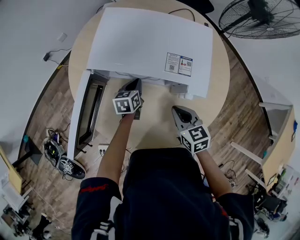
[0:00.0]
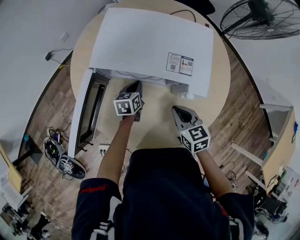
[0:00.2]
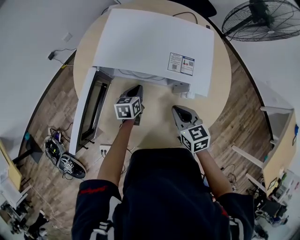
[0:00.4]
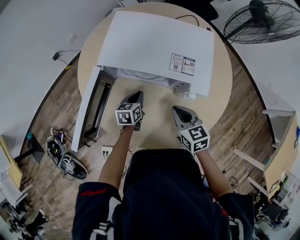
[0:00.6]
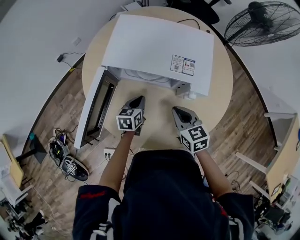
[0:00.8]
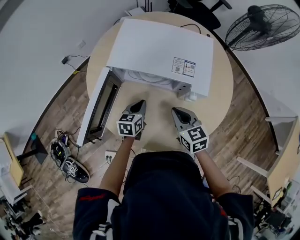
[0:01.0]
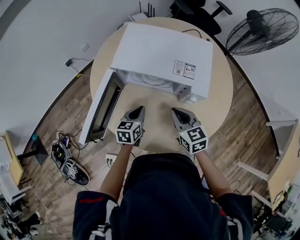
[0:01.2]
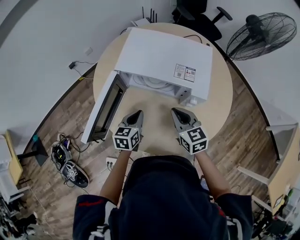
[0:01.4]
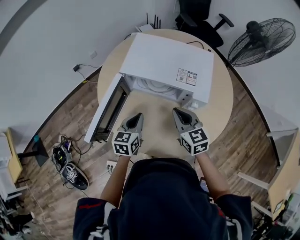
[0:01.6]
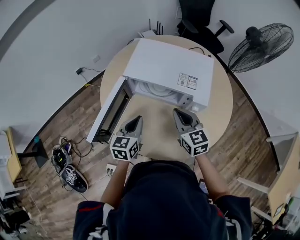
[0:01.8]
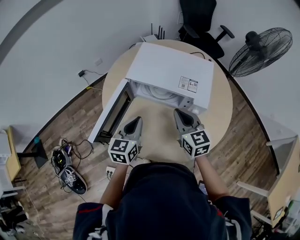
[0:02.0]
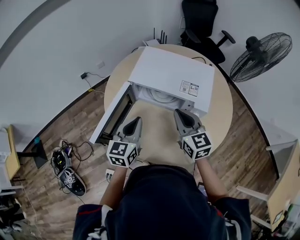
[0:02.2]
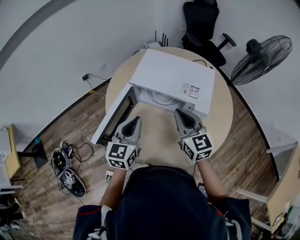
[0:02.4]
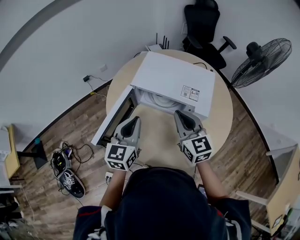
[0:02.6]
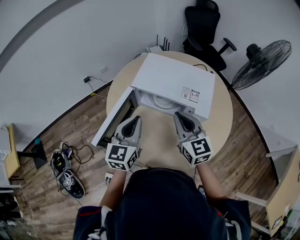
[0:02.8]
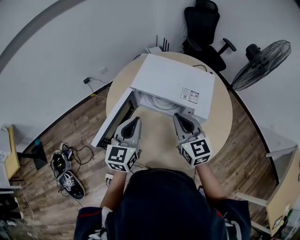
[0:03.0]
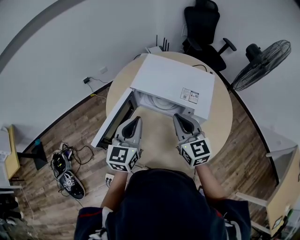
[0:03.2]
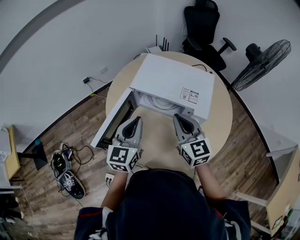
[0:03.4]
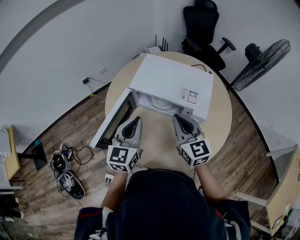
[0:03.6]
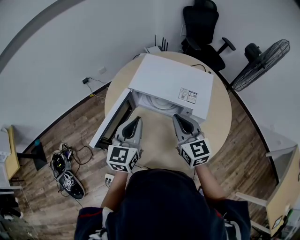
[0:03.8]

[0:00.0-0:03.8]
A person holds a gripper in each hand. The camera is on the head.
0:00.0 to 0:01.2: The right gripper shifts roughly 5 cm upward. Meanwhile the left gripper shifts approximately 15 cm backward and upward.
0:01.2 to 0:02.6: Both grippers move upward, about 20 cm. The left gripper swivels some 30 degrees, while the right gripper swivels roughly 20 degrees.
0:02.6 to 0:03.8: The grippers stay close to where they were, moving slightly.

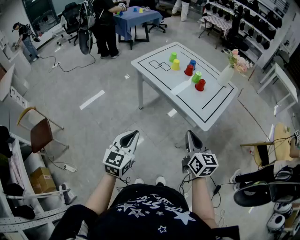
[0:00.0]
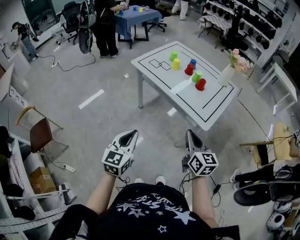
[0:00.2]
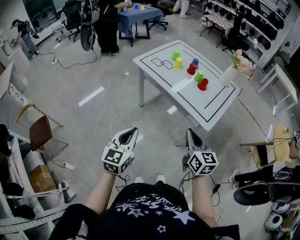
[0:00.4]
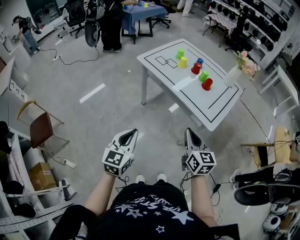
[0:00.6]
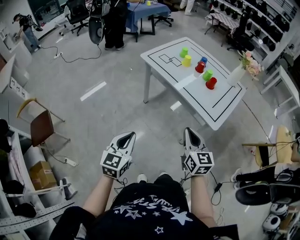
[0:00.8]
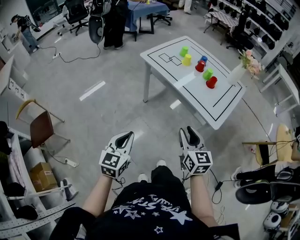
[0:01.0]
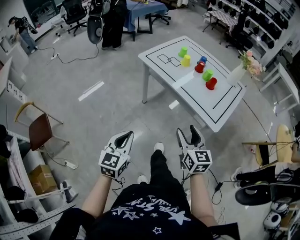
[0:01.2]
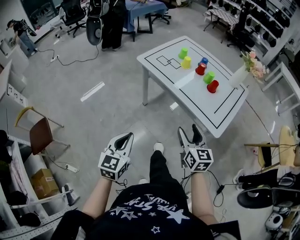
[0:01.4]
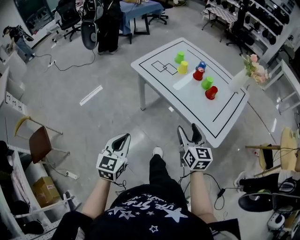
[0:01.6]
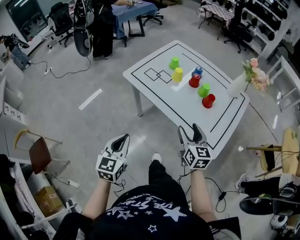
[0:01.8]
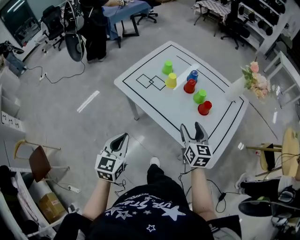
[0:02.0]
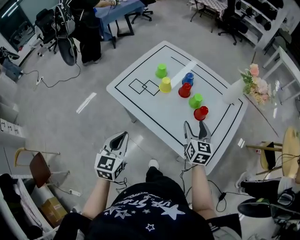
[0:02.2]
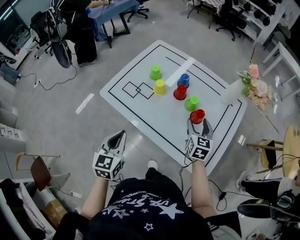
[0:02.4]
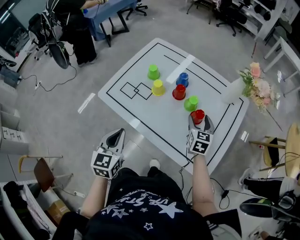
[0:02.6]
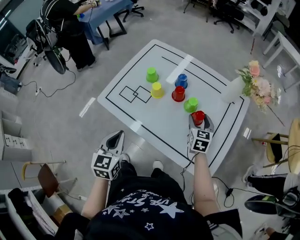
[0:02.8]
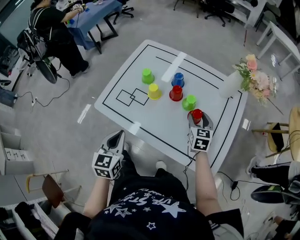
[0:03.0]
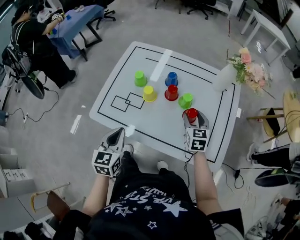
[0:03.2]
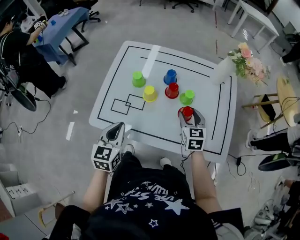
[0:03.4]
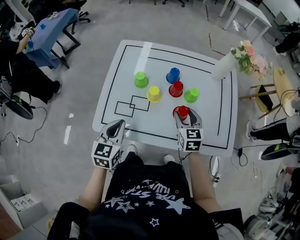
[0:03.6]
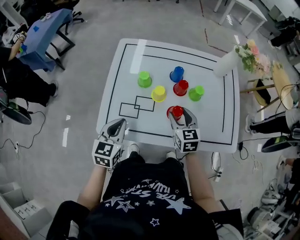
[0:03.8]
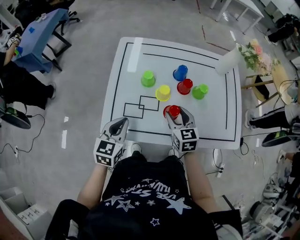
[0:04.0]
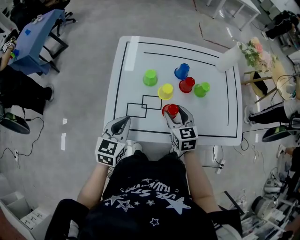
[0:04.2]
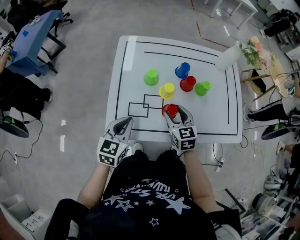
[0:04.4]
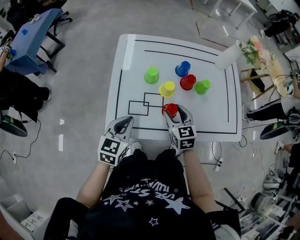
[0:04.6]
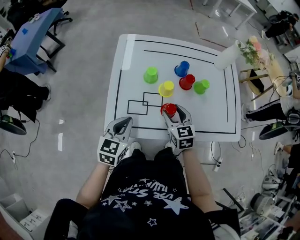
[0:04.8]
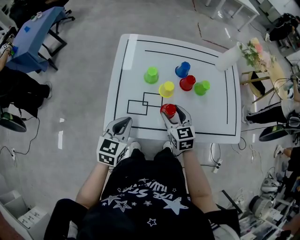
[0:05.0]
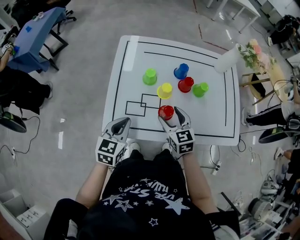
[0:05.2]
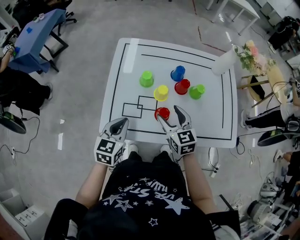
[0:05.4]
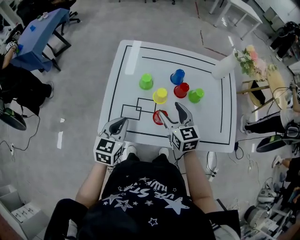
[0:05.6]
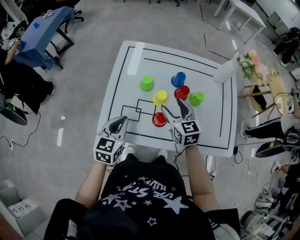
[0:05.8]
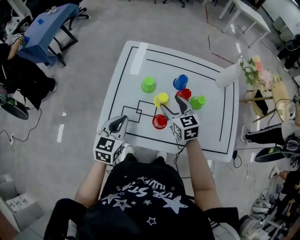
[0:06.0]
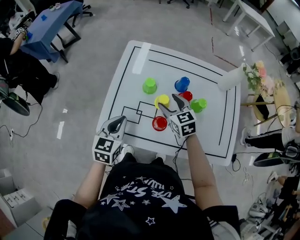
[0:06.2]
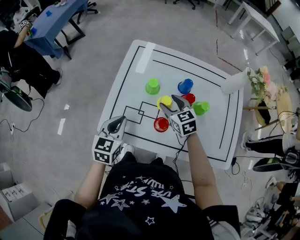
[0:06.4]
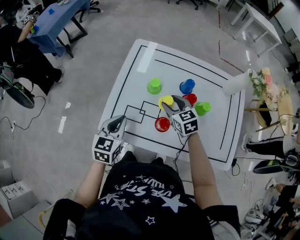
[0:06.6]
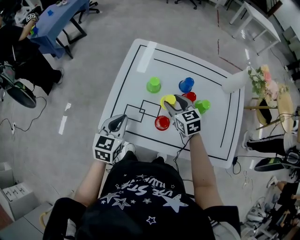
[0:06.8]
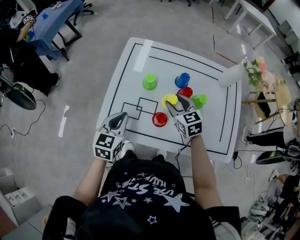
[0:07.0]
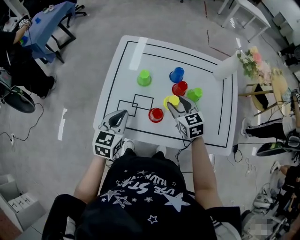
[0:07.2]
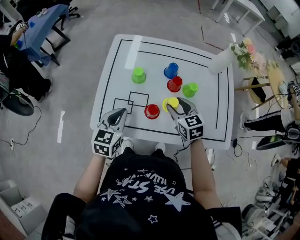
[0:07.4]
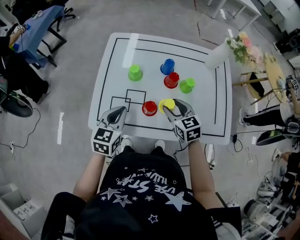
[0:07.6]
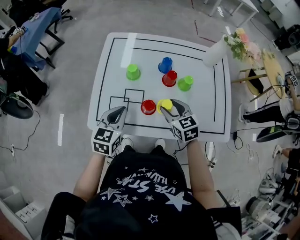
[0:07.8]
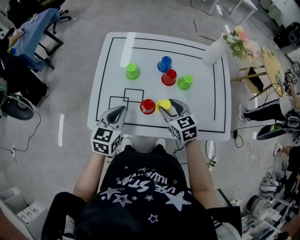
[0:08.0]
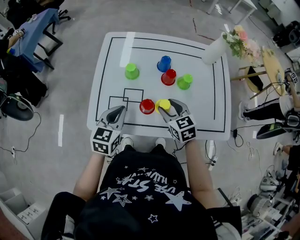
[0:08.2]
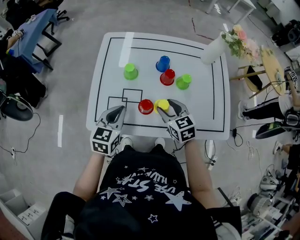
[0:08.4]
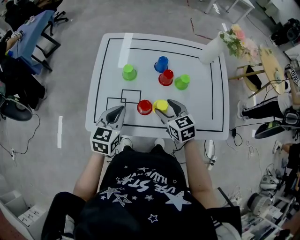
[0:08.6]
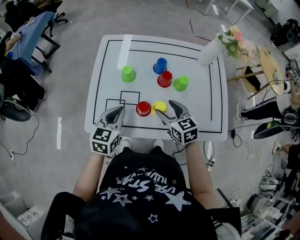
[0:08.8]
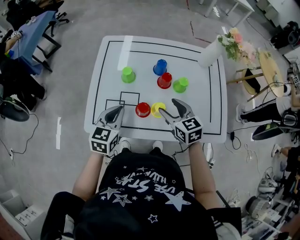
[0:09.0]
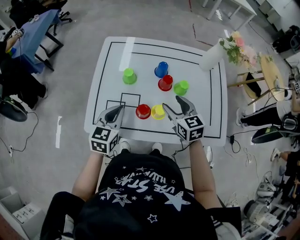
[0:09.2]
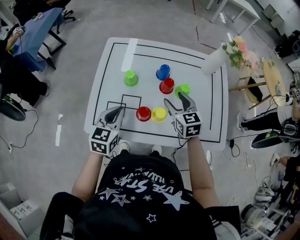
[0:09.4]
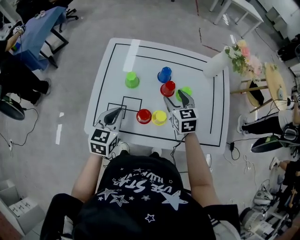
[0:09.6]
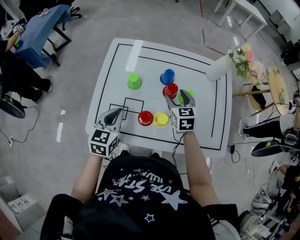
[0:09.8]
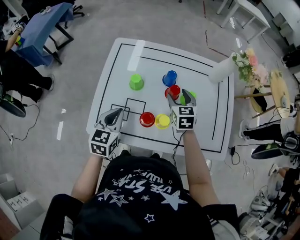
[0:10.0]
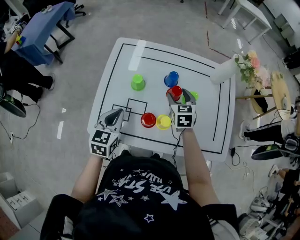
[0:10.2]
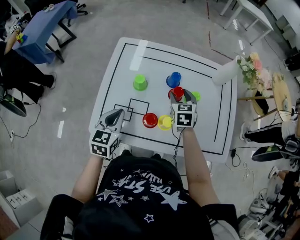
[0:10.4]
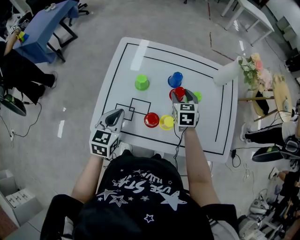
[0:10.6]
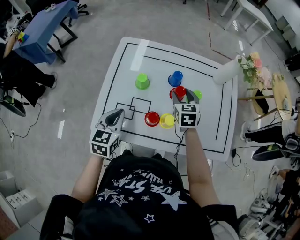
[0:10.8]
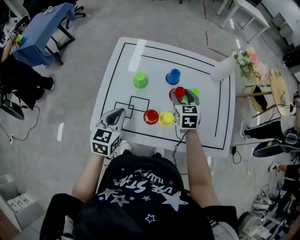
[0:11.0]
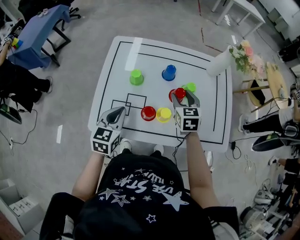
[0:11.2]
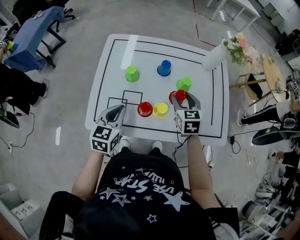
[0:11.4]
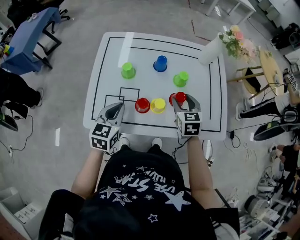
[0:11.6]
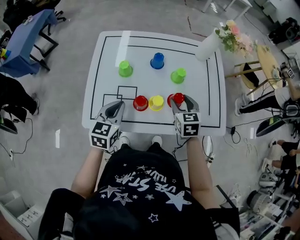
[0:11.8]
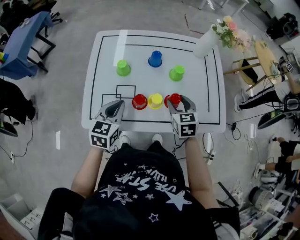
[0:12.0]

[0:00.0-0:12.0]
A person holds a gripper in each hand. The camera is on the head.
0:00.0 to 0:01.6: The right gripper is displaced forward by about 15 cm, and opens; the left gripper heads forward and to the left, covering some 15 cm.
0:01.6 to 0:03.0: The left gripper moves forward, about 35 cm; the right gripper is displaced forward and to the right by approximately 35 cm, and turns by approximately 30 degrees.
0:03.0 to 0:04.4: The left gripper is displaced to the left and forward by about 20 cm, and swivels roughly 40 degrees. The right gripper shifts roughly 25 cm to the left.
0:04.4 to 0:06.0: The right gripper is displaced forward by approximately 10 cm.
0:06.0 to 0:07.6: The right gripper travels backward and to the right by approximately 10 cm.
0:07.6 to 0:09.0: The grippers move only a little.
0:09.0 to 0:10.4: The right gripper moves forward, approximately 15 cm, and rotates roughly 20 degrees.
0:10.4 to 0:12.0: The right gripper shifts about 15 cm backward and to the right. Meanwhile the left gripper is displaced to the right by about 5 cm.

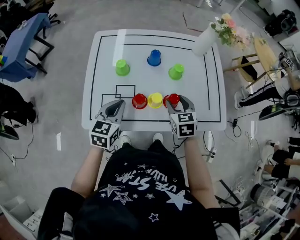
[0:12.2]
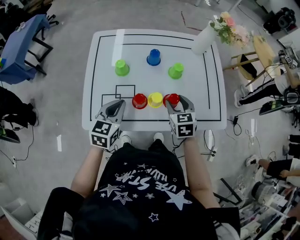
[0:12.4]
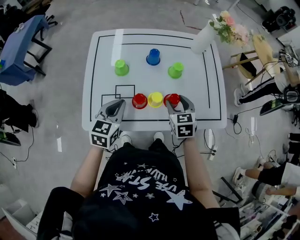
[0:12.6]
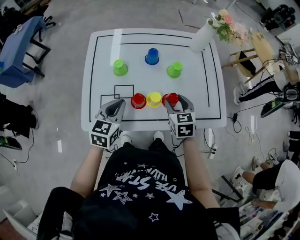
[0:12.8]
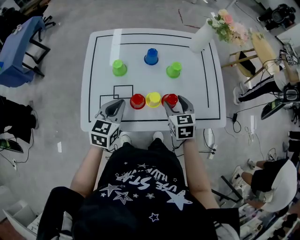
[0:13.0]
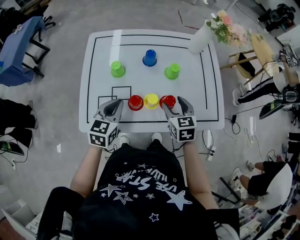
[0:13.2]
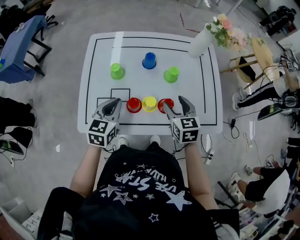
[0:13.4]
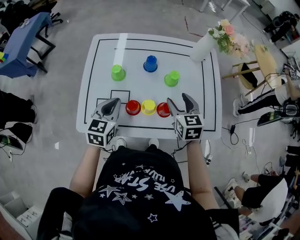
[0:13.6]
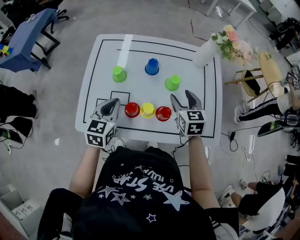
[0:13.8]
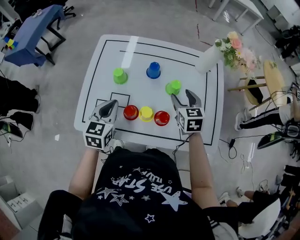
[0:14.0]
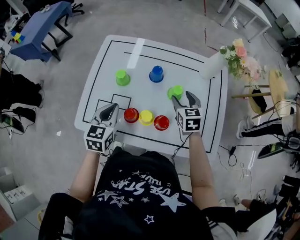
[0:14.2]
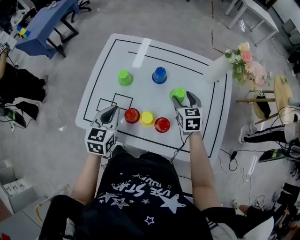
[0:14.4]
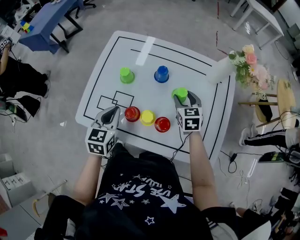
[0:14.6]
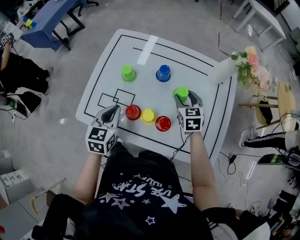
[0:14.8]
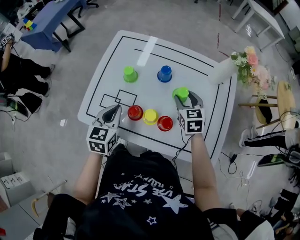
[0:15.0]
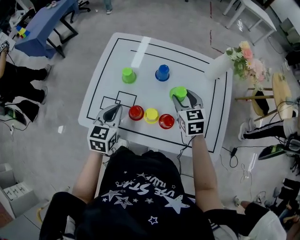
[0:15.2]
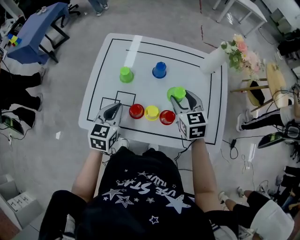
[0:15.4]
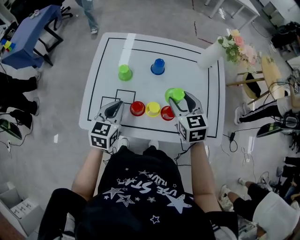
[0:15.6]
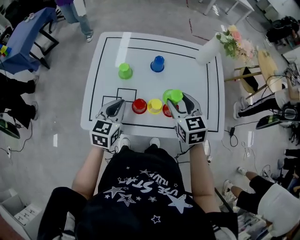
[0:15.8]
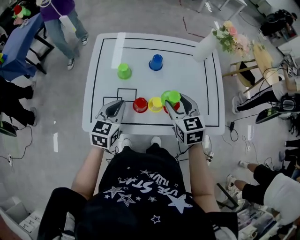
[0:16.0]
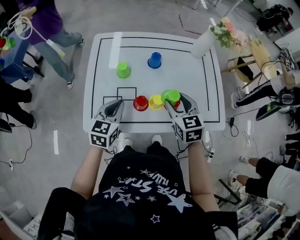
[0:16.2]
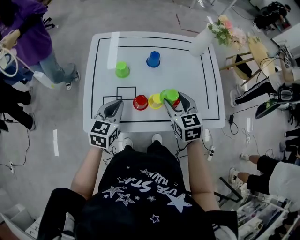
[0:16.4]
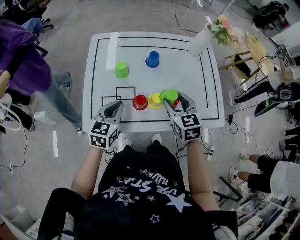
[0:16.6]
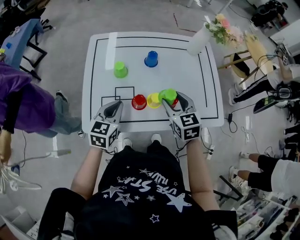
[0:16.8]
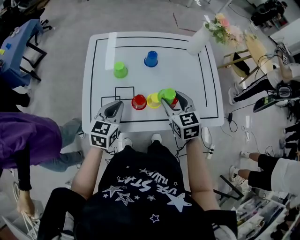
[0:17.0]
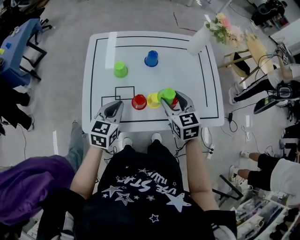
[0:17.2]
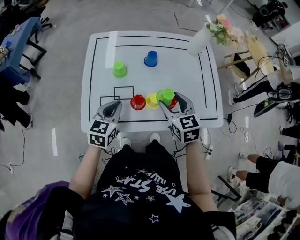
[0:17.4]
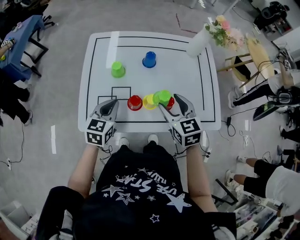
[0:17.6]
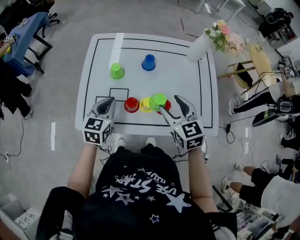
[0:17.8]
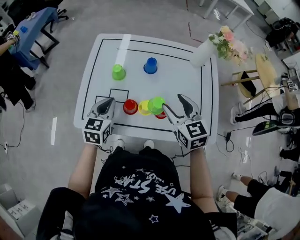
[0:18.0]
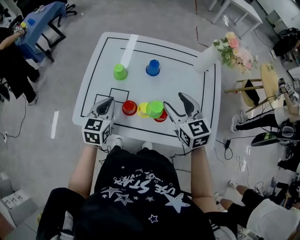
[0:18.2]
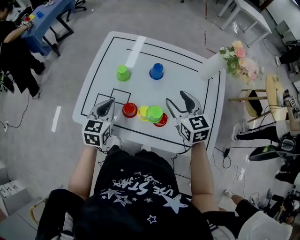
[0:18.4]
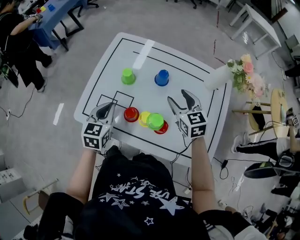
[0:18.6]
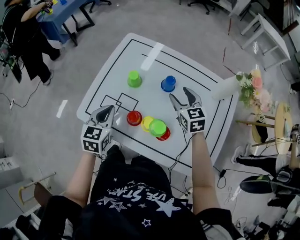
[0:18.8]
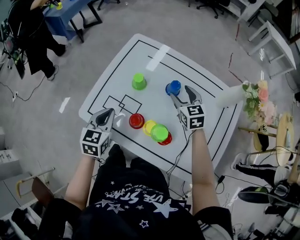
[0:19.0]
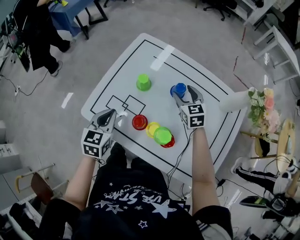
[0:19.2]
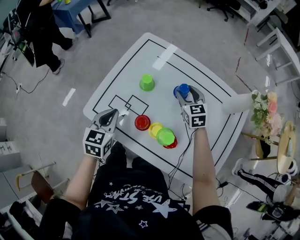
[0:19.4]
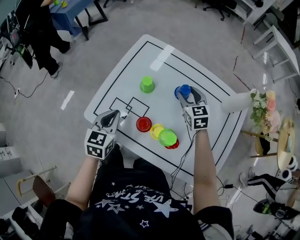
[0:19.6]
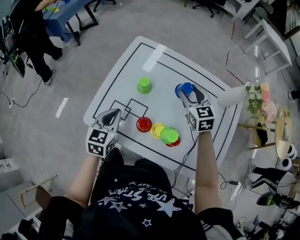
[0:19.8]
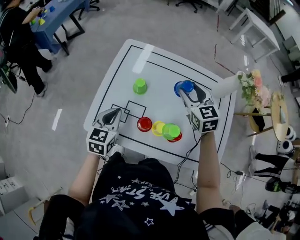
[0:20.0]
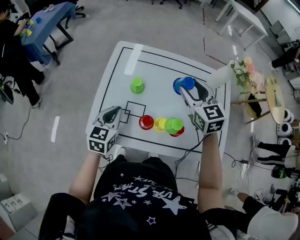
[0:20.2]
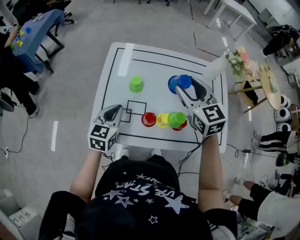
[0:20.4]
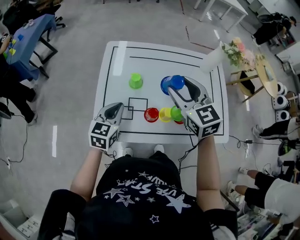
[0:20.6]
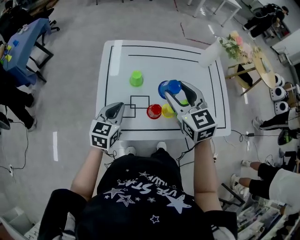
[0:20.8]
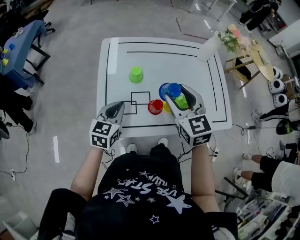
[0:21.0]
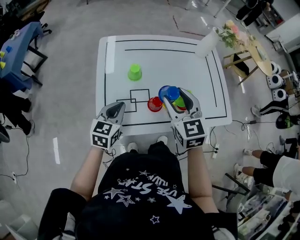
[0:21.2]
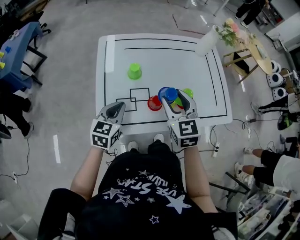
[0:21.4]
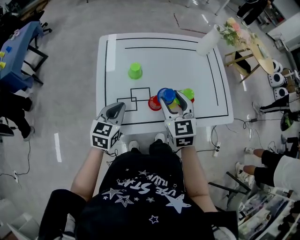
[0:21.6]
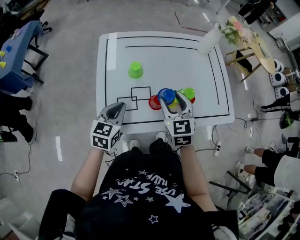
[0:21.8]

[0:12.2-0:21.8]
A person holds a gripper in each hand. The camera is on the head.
0:12.2 to 0:13.8: The right gripper travels forward by roughly 10 cm.
0:13.8 to 0:15.4: The right gripper reaches roughly 5 cm downward, then returns.
0:15.4 to 0:17.0: The right gripper goes some 10 cm backward.
0:17.0 to 0:18.6: The left gripper rotates approximately 30 degrees, while the right gripper shifts by approximately 15 cm, and rotates about 20 degrees.
0:18.6 to 0:20.2: The right gripper heads upward, covering some 10 cm, while the left gripper ends up about 5 cm from where it was.
0:20.2 to 0:21.8: The right gripper shifts about 20 cm backward and downward, and rotates roughly 30 degrees.
